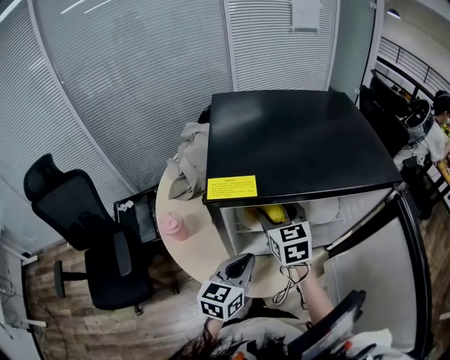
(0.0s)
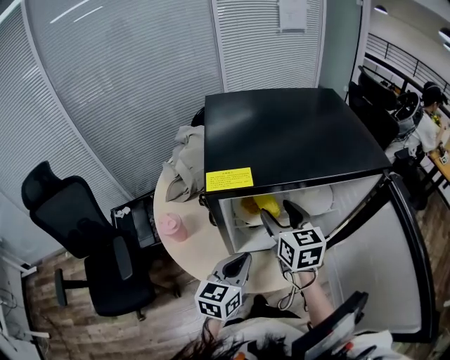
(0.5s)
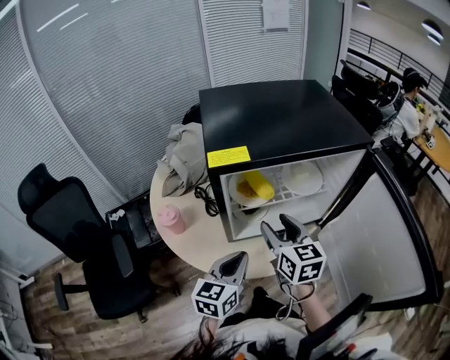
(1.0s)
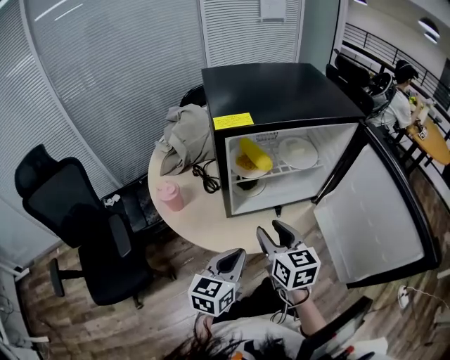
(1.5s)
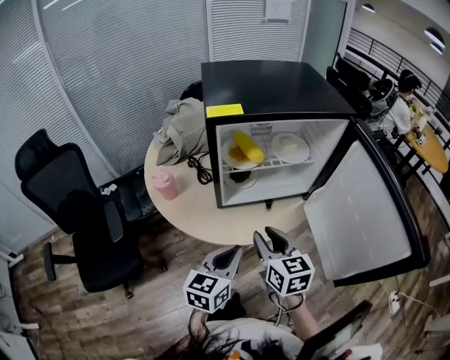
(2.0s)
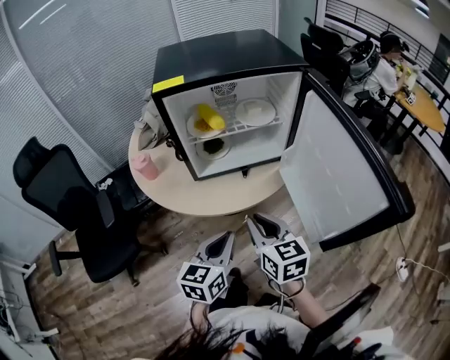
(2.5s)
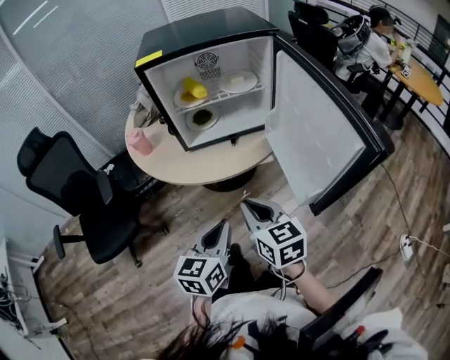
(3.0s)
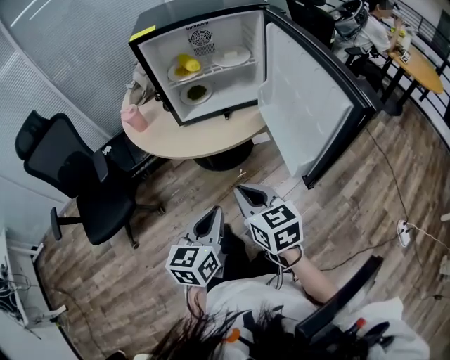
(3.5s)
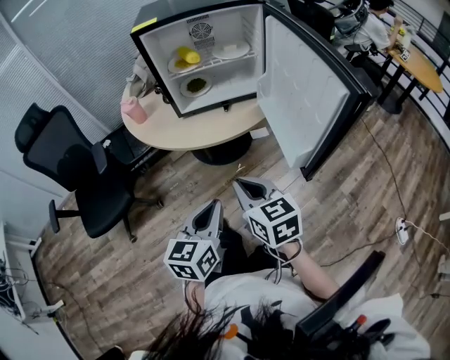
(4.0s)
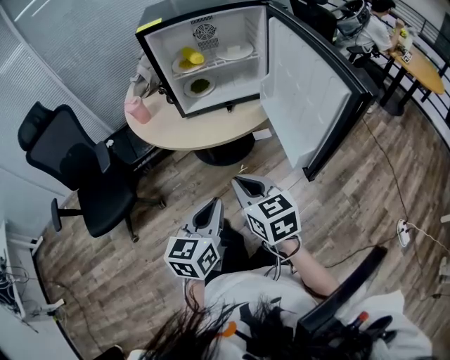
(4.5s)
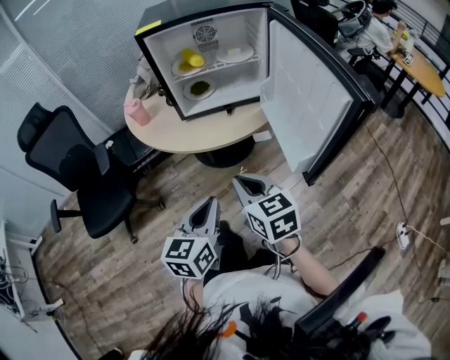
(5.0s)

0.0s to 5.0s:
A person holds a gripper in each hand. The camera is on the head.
0.0s to 2.5s: Both grippers travel together backward, some 30 cm. The right gripper closes.
2.5s to 5.0s: The grippers both shift backward by roughly 15 cm.

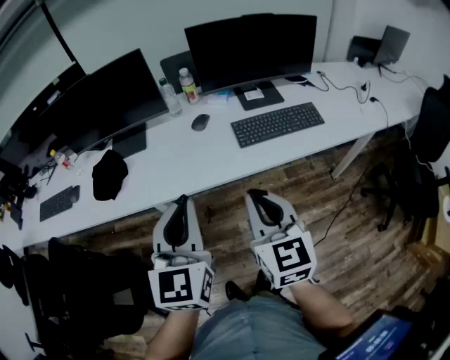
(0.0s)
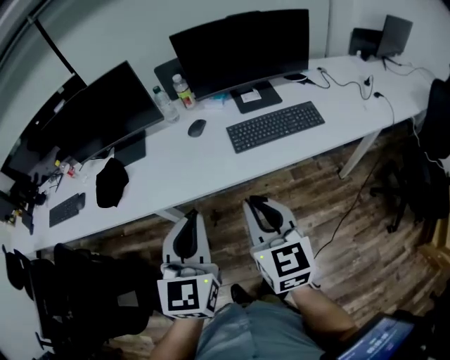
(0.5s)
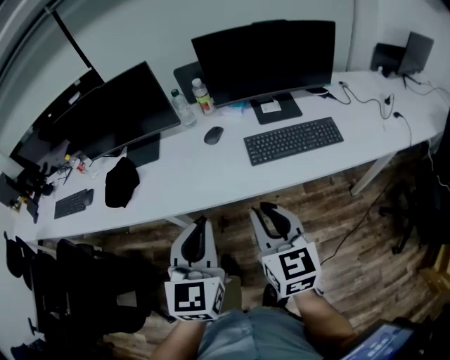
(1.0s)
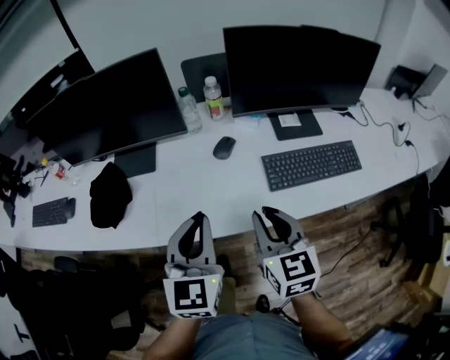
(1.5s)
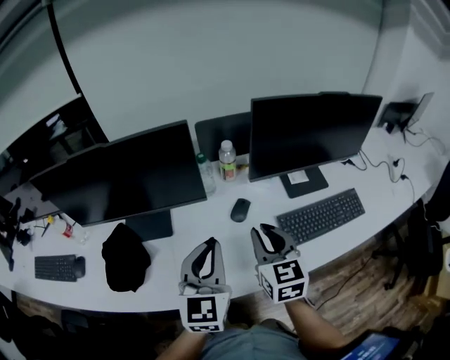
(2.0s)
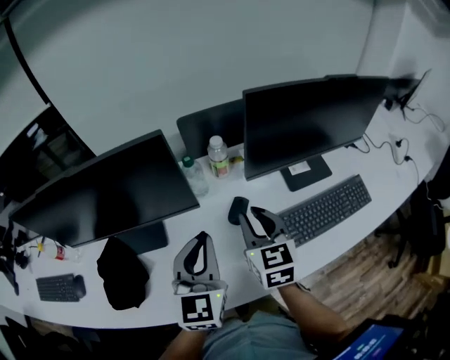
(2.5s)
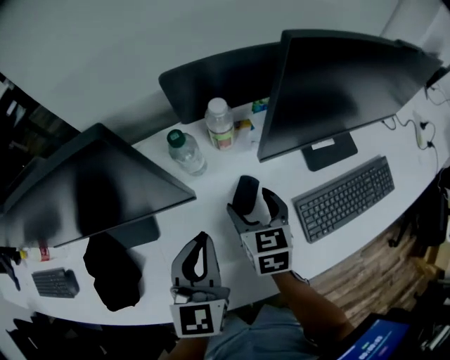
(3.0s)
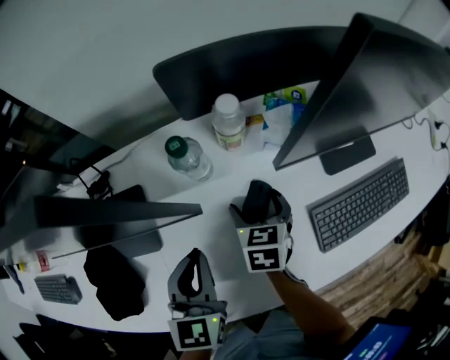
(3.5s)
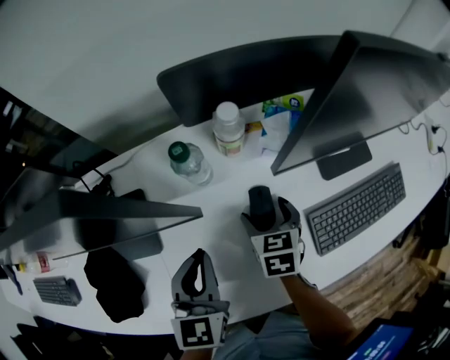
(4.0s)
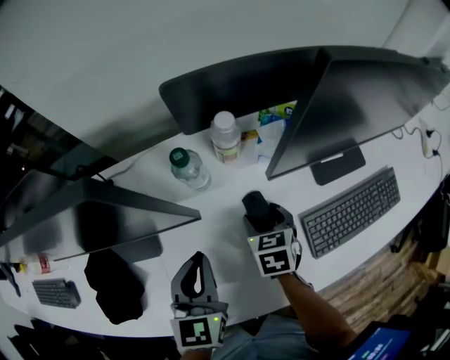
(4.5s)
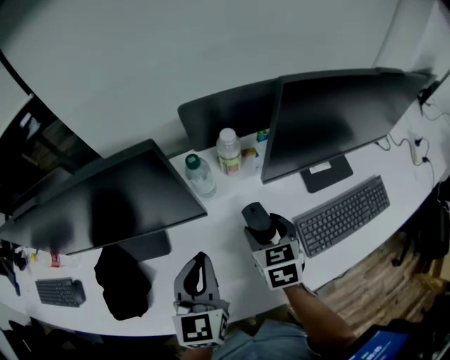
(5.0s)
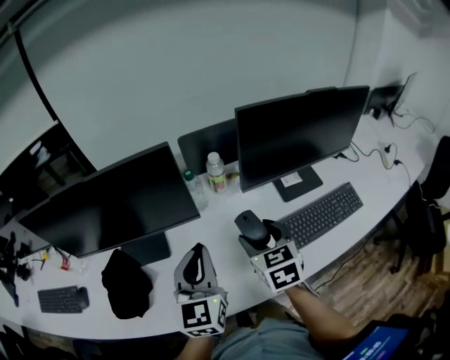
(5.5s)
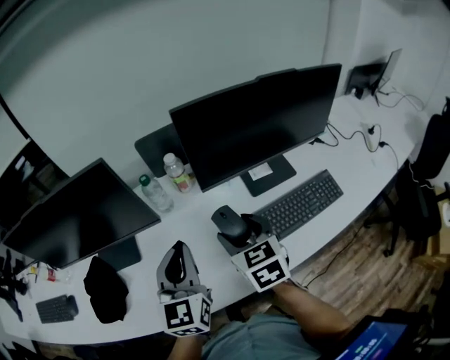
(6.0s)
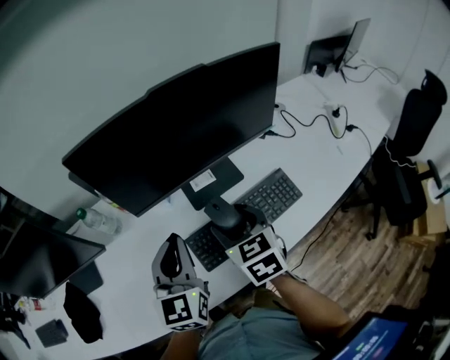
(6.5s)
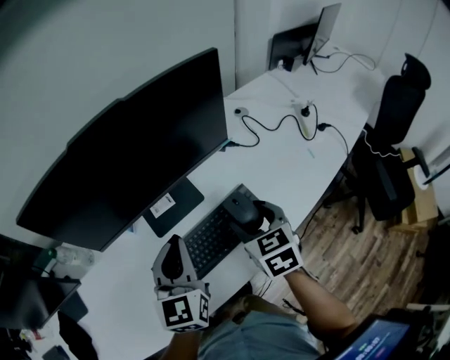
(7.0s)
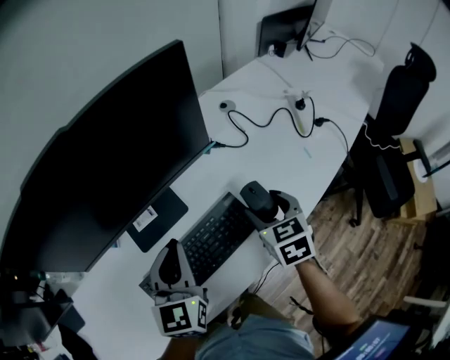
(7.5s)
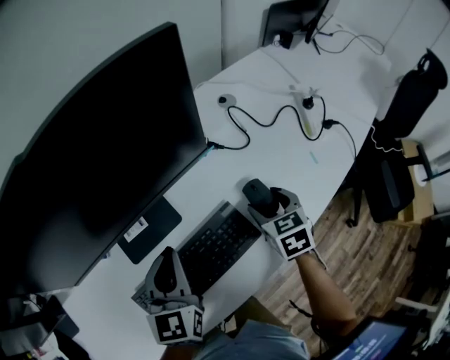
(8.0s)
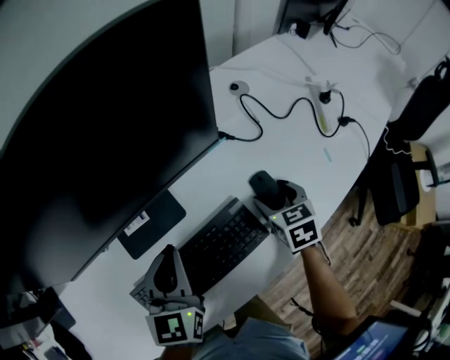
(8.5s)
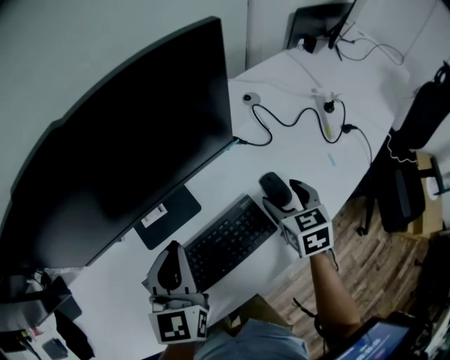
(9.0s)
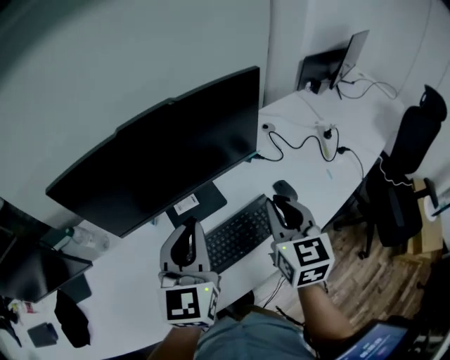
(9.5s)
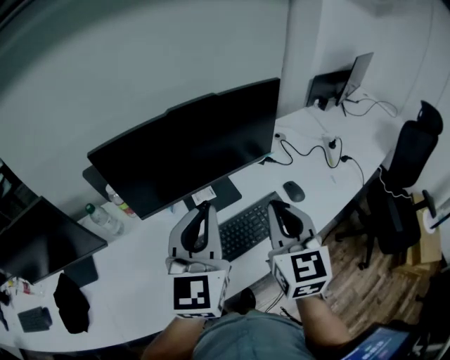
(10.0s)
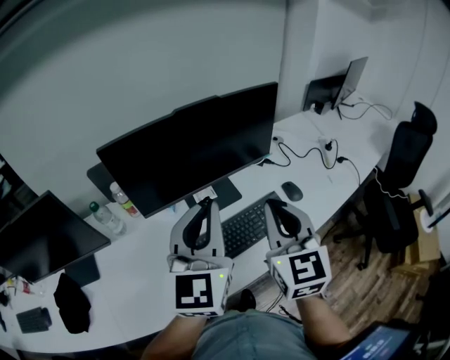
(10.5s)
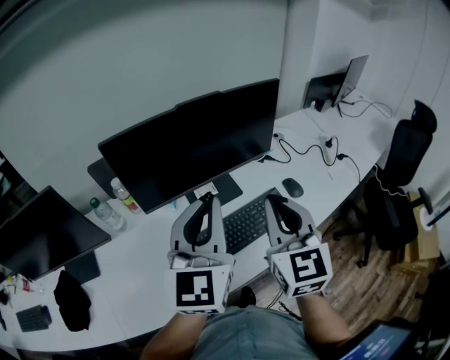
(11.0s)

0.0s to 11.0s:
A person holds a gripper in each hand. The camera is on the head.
0.0s to 2.0s: The grippers both shift forward by some 30 cm.
2.0s to 3.5s: Both grippers travel together downward and forward, some 25 cm. The left gripper turns by some 20 degrees. The right gripper rotates approximately 30 degrees, and opens its fingers.
3.5s to 5.5s: Both grippers move upward and backward, about 20 cm. The left gripper changes its angle by roughly 20 degrees.
5.5s to 7.5s: Both grippers are carried to the right, approximately 50 cm. The left gripper changes its angle by some 20 degrees. Meanwhile the right gripper changes its angle by roughly 20 degrees.
7.5s to 9.0s: The right gripper goes roughly 5 cm forward, and reaches roughly 10 cm downward, then returns.
9.0s to 11.0s: The left gripper goes about 25 cm upward and backward, and rotates some 20 degrees. The right gripper moves upward, backward and to the left, approximately 40 cm, tips its fingers upward by some 40 degrees, and closes.

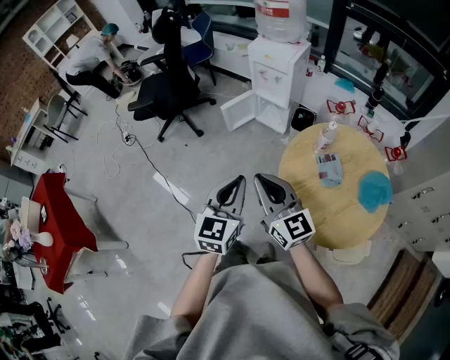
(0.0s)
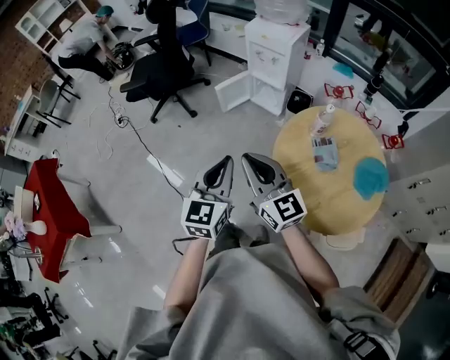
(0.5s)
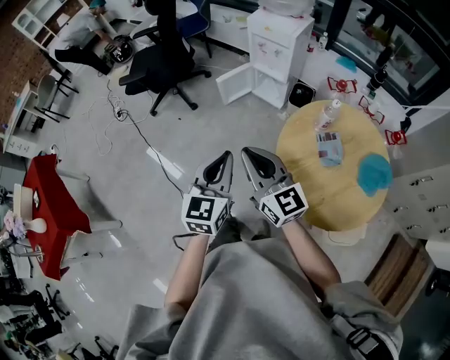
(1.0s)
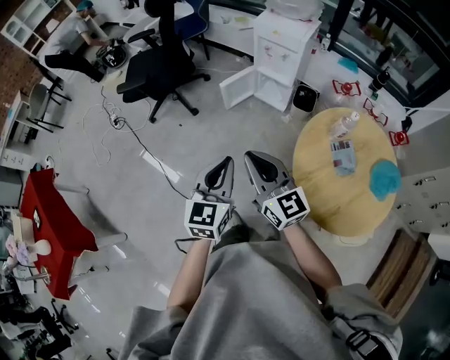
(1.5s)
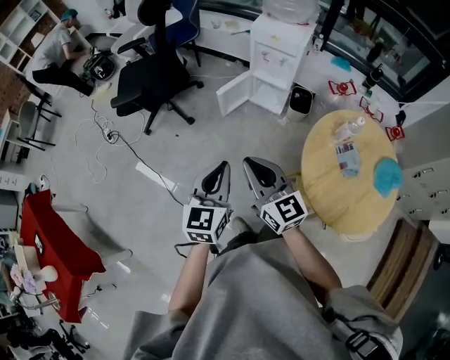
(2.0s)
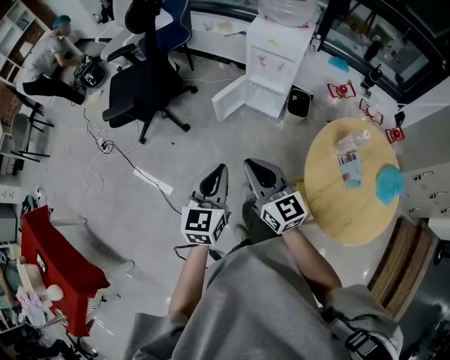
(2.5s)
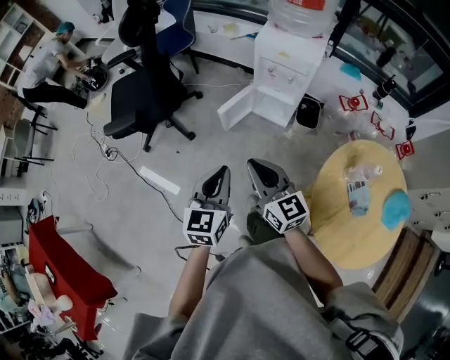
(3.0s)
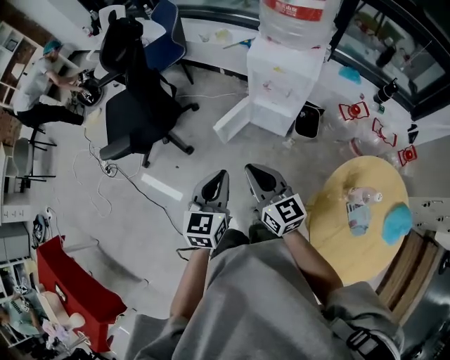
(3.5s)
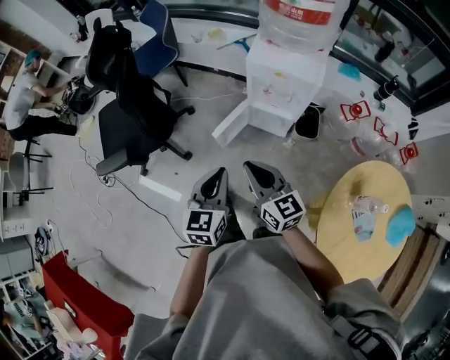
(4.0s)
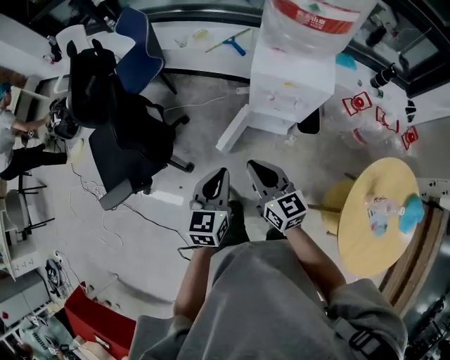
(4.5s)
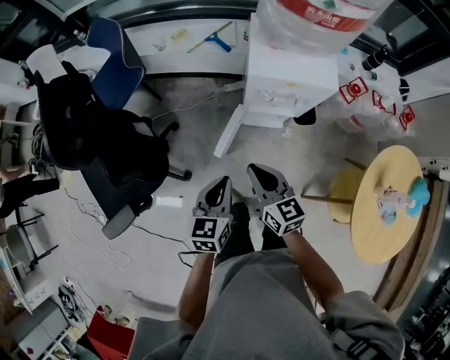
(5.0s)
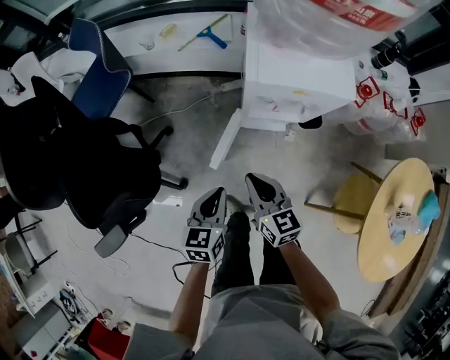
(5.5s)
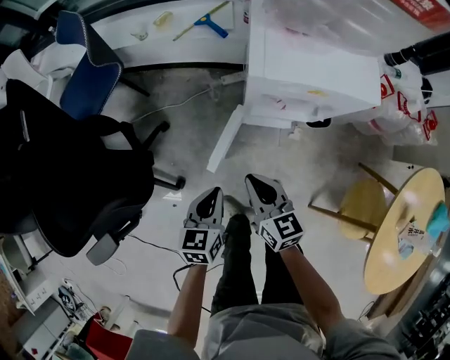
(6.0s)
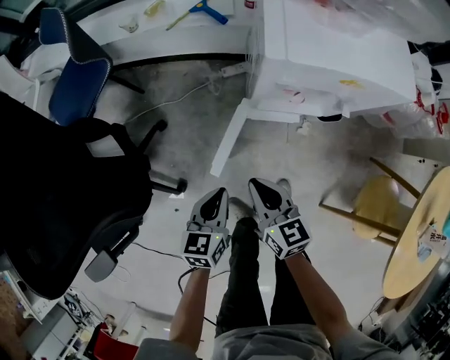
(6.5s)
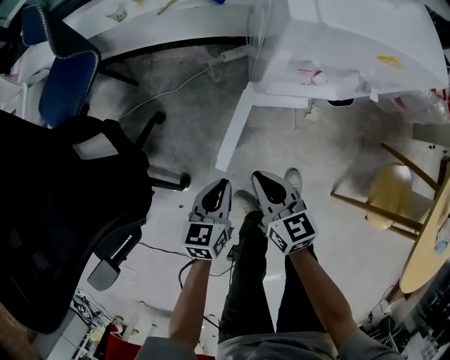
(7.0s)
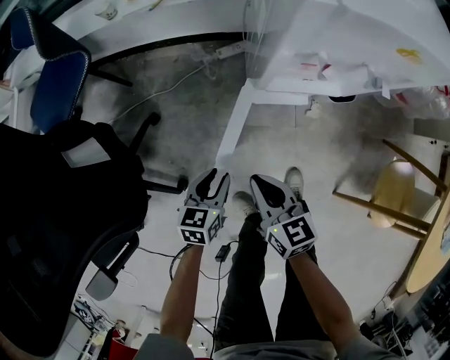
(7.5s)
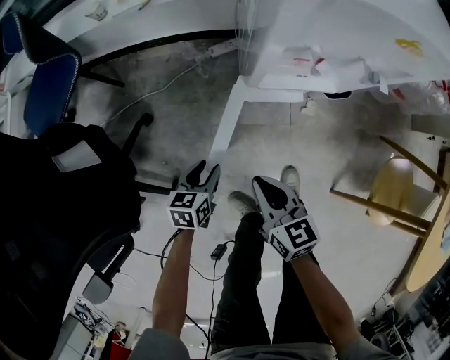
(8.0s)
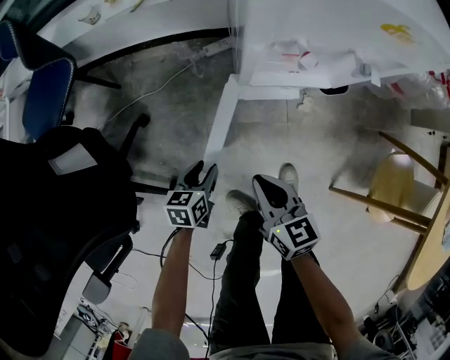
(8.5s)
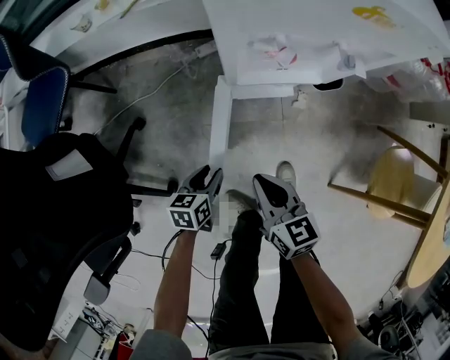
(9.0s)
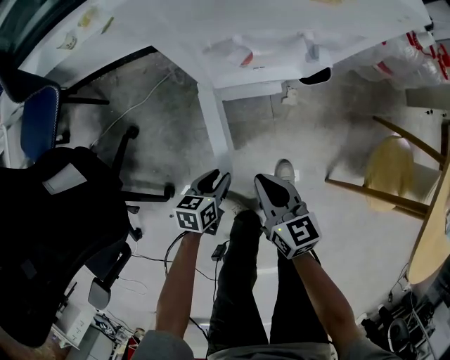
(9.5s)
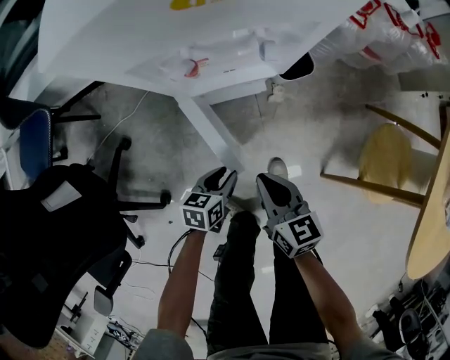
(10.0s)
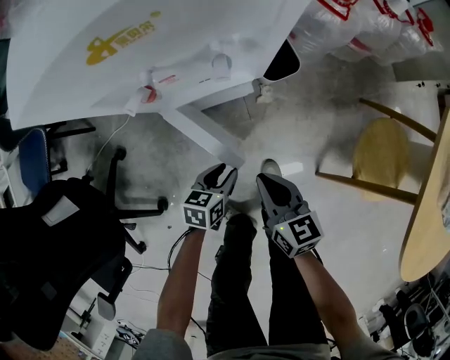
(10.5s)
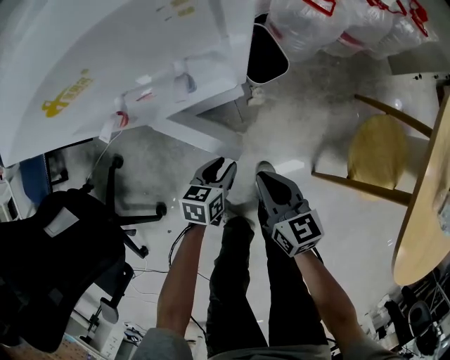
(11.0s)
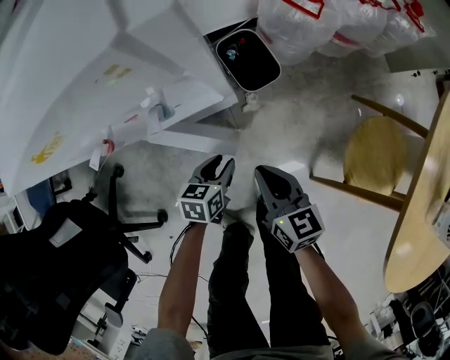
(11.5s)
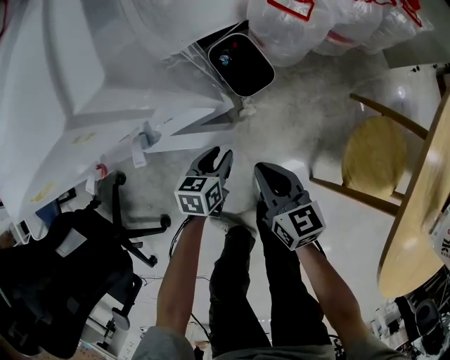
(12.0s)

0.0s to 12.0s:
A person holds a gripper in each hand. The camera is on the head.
0.0s to 2.0s: Both grippers travel together to the left and forward, about 20 cm.
2.0s to 4.0s: The two grippers go about 35 cm forward.
4.0s to 6.0s: Both grippers move downward and forward, some 30 cm. The right gripper turns by roughly 30 degrees. The left gripper turns by about 20 degrees.
6.0s to 8.0s: The left gripper moves downward, about 25 cm, and opens. Meanwhile the right gripper moves downward, about 15 cm.
8.0s to 10.0s: The two grippers go about 15 cm to the right.
10.0s to 12.0s: The grippers both shift forward and to the right by about 20 cm.
